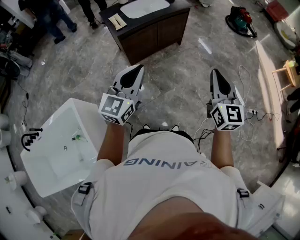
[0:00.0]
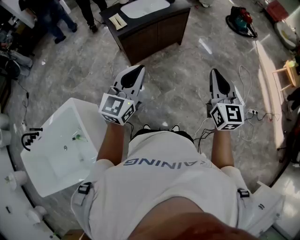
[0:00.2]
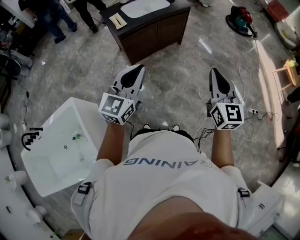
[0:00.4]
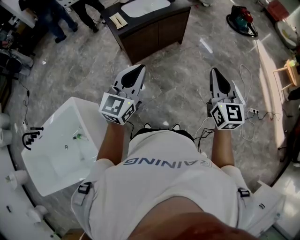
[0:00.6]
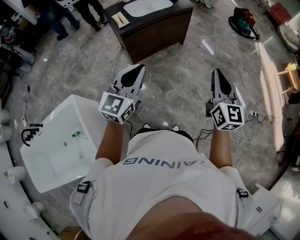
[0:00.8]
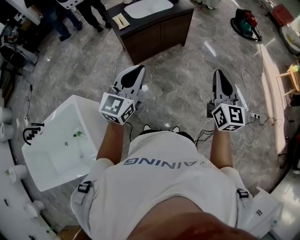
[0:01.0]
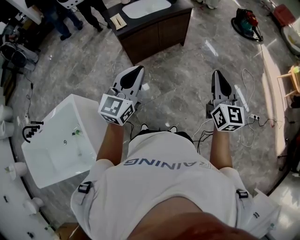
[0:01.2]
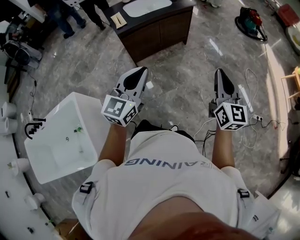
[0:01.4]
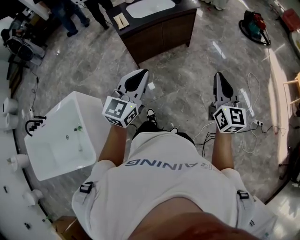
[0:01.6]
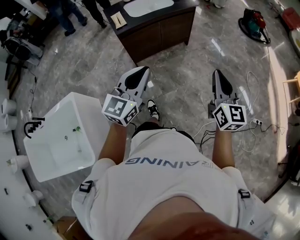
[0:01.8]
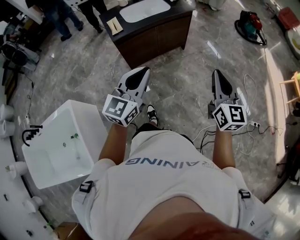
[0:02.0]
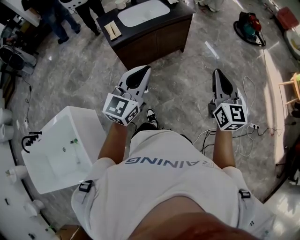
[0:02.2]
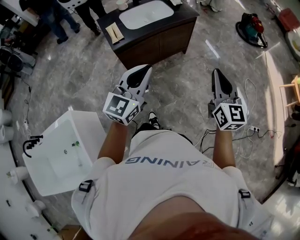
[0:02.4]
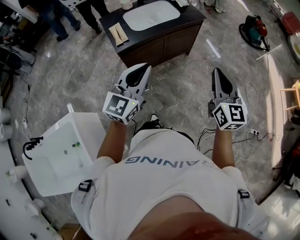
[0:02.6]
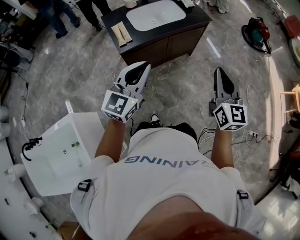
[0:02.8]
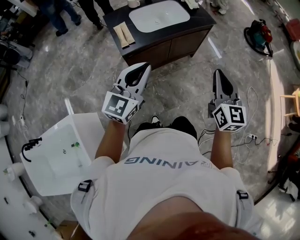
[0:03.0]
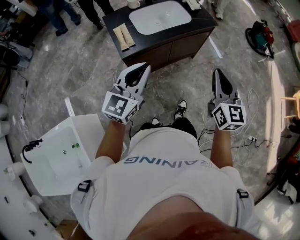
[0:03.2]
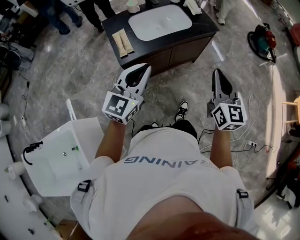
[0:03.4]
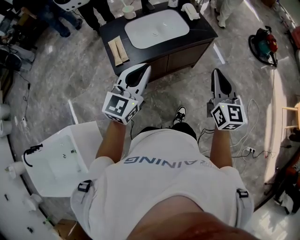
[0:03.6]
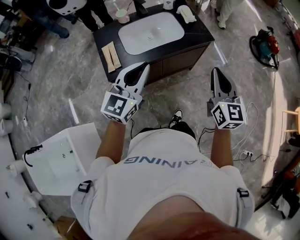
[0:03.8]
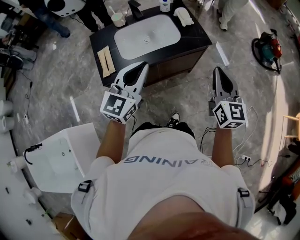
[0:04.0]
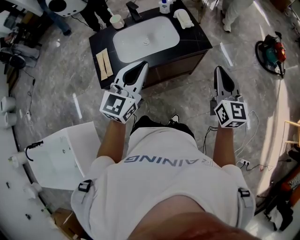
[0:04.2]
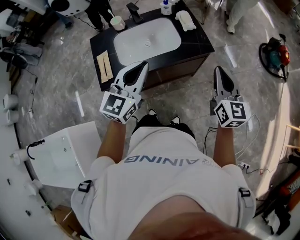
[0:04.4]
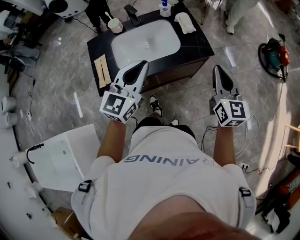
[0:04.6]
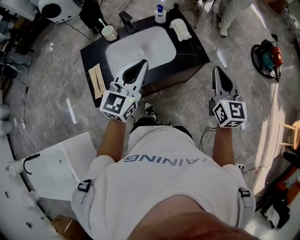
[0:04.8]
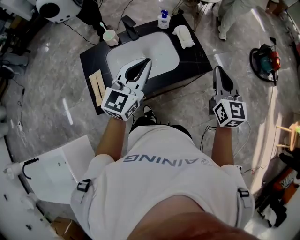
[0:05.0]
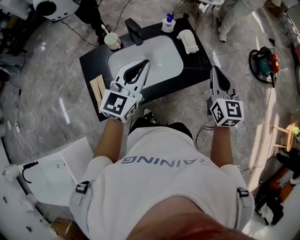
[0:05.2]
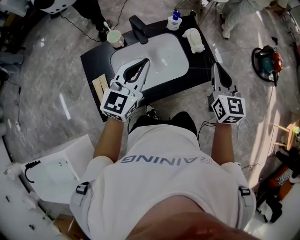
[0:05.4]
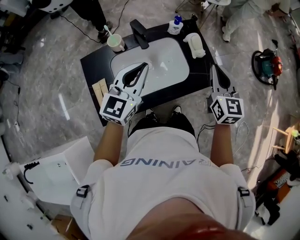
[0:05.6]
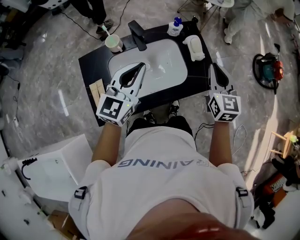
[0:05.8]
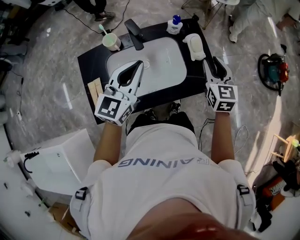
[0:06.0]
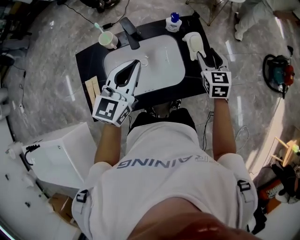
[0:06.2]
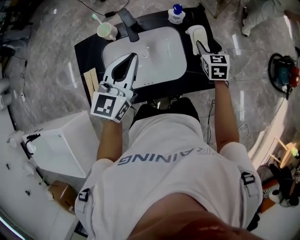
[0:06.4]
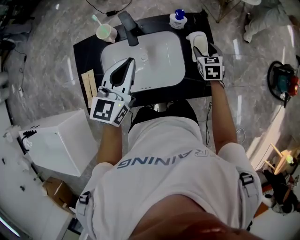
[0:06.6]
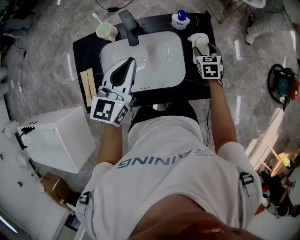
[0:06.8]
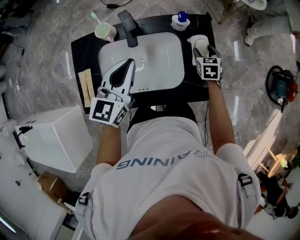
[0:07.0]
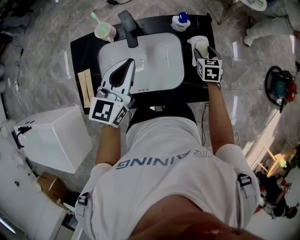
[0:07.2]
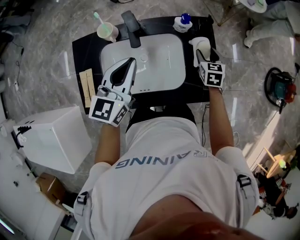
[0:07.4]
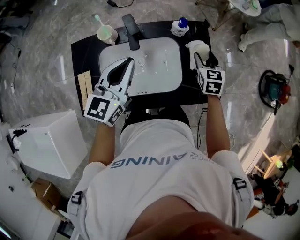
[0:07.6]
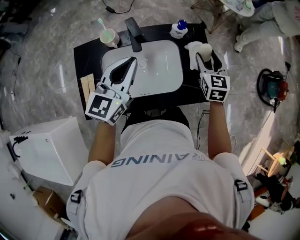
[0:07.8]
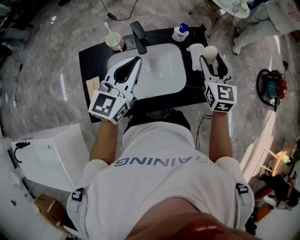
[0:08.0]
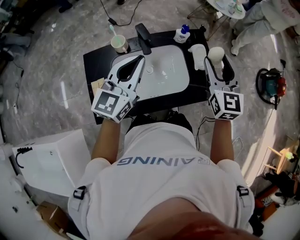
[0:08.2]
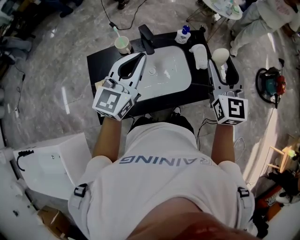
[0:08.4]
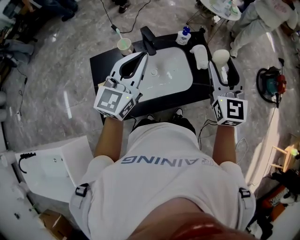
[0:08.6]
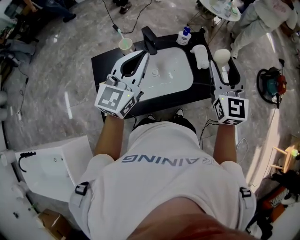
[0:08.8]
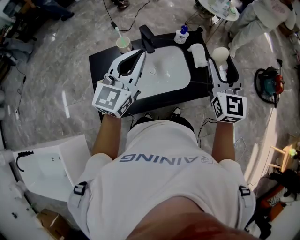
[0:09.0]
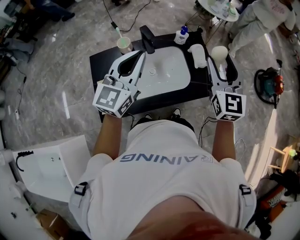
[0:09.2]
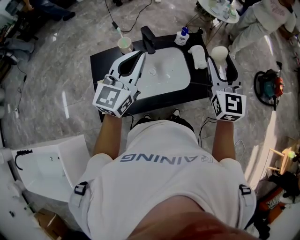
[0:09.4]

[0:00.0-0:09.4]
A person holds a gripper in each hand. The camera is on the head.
0.0 to 1.6 s: The two grippers go some 10 cm to the right.
1.6 to 3.2 s: Both grippers travel together forward and to the left, about 35 cm.
3.2 to 4.8 s: The two grippers go about 40 cm forward.
4.8 to 6.2 s: The right gripper shifts roughly 30 cm forward and downward, rotates approximately 30 degrees, and opens its fingers. Meanwhile the left gripper travels forward and to the left by roughly 20 cm.
6.2 to 7.8 s: The right gripper reaches some 15 cm downward, then returns.
7.8 to 9.4 s: The right gripper goes roughly 25 cm upward and backward, and swivels about 20 degrees. The left gripper travels upward and backward by approximately 15 cm.

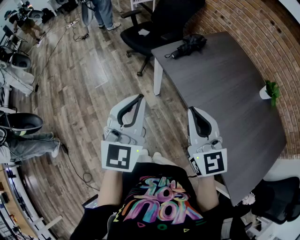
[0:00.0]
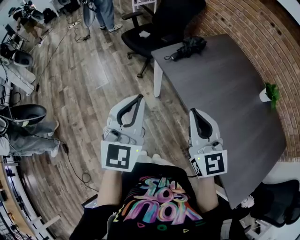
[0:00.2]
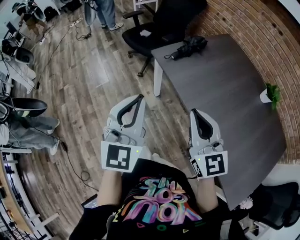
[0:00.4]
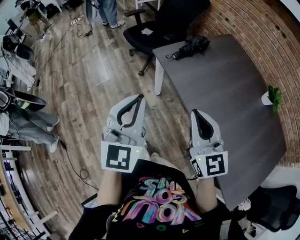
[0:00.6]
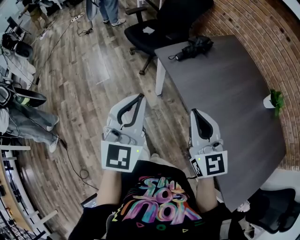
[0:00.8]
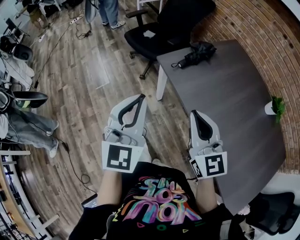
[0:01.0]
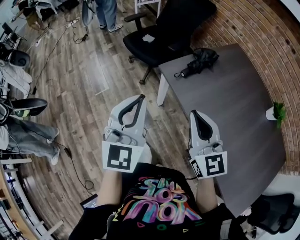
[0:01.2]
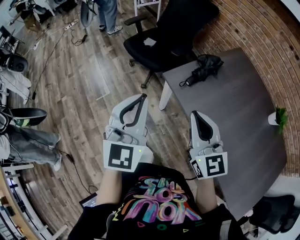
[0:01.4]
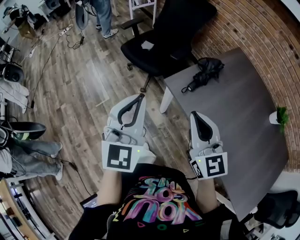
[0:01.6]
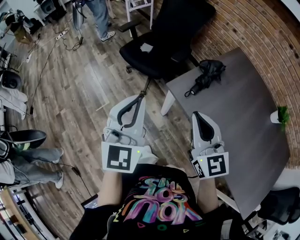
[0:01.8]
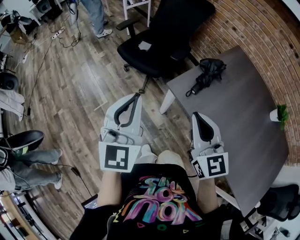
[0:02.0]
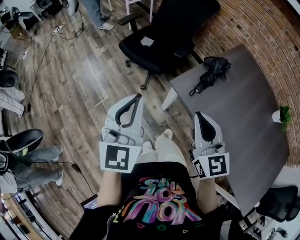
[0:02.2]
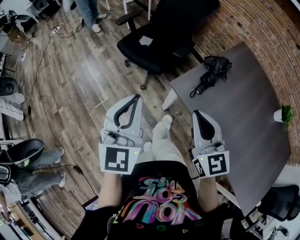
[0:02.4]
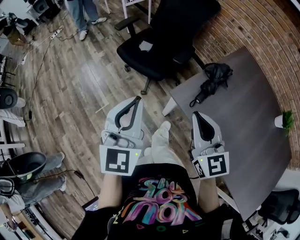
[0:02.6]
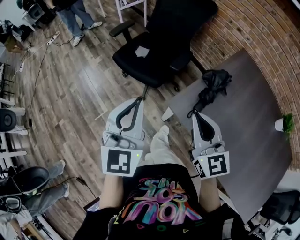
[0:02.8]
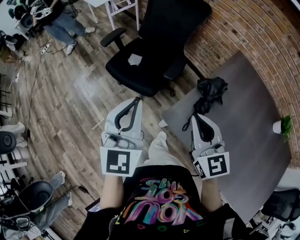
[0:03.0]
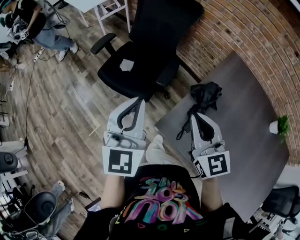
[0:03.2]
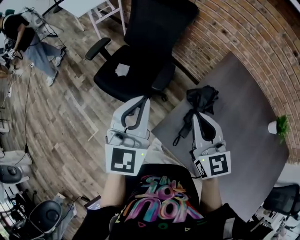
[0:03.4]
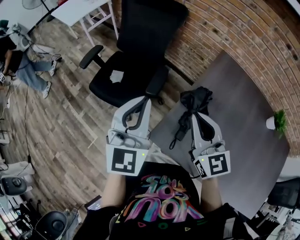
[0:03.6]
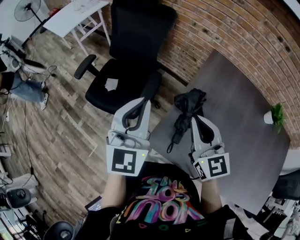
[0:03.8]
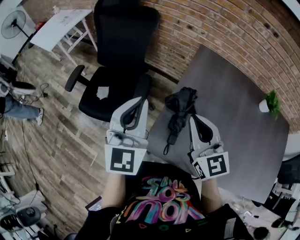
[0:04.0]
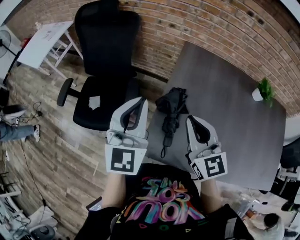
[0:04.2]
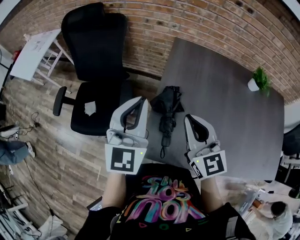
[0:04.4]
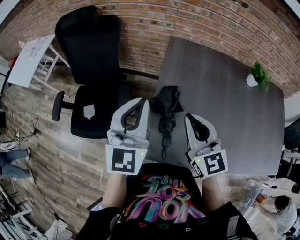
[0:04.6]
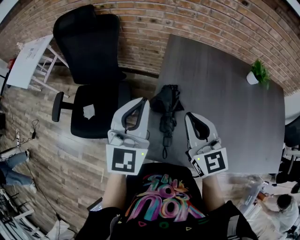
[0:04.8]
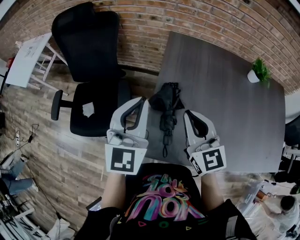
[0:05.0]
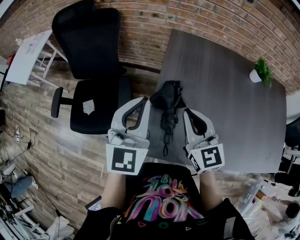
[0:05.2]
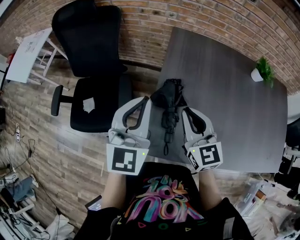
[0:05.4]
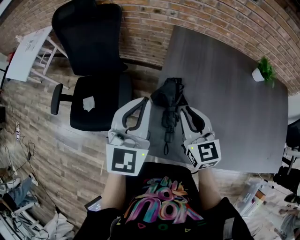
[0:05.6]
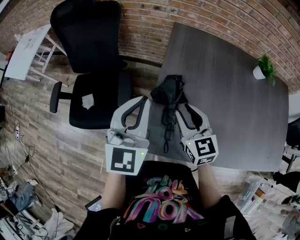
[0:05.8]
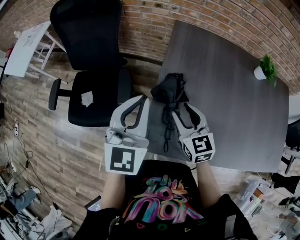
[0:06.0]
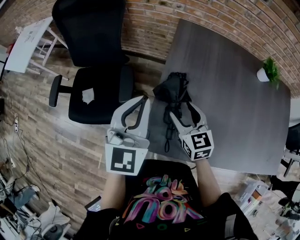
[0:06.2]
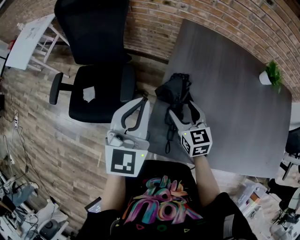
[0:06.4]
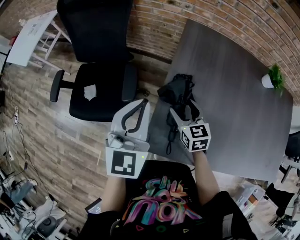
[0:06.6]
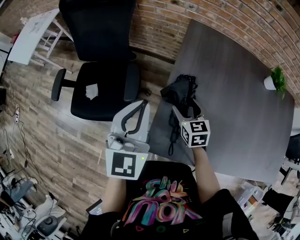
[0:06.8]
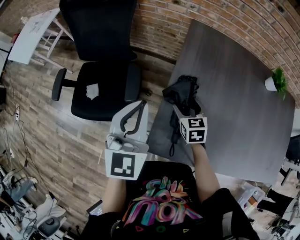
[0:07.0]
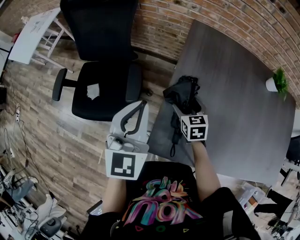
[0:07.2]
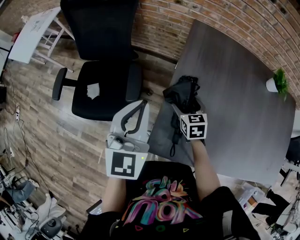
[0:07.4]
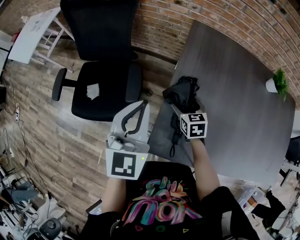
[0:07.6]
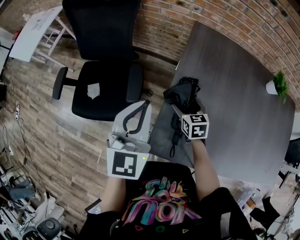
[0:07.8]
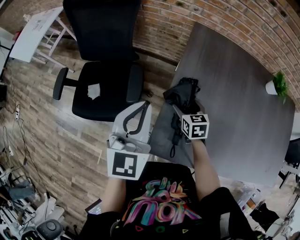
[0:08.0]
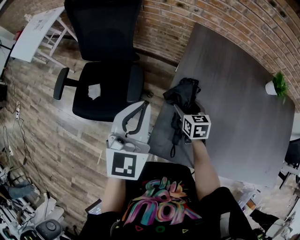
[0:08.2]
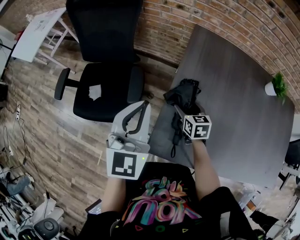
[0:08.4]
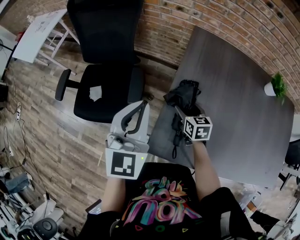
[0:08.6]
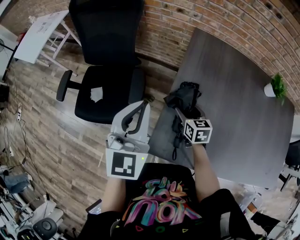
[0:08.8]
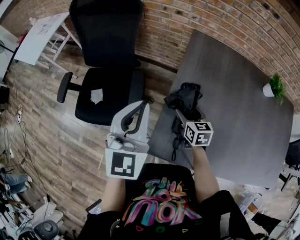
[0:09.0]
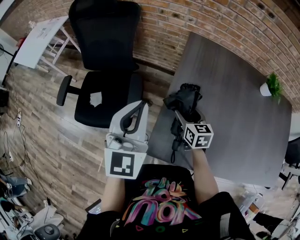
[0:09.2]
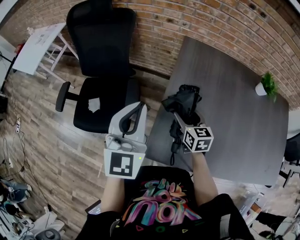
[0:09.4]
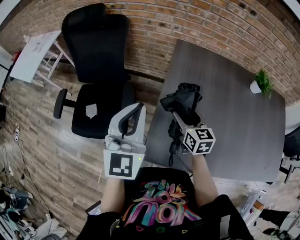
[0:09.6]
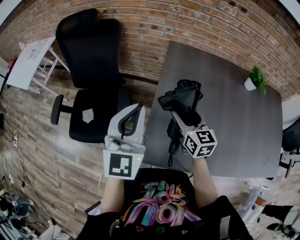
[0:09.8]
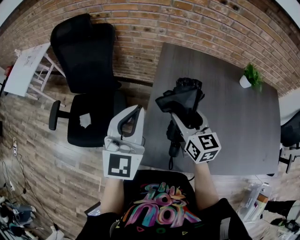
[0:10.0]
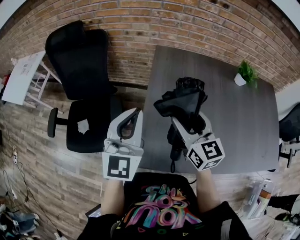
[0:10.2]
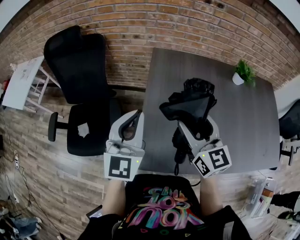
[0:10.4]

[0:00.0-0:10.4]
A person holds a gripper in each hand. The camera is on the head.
0.0 to 1.4 s: The two grippers go approximately 20 cm forward.
1.4 to 3.0 s: The grippers both shift forward by some 25 cm.
3.0 to 4.4 s: The left gripper shifts by about 25 cm, and changes its angle by about 30 degrees. The right gripper moves approximately 15 cm, and turns by roughly 30 degrees.
4.4 to 6.0 s: The left gripper heads downward, covering approximately 5 cm. Meanwhile the right gripper goes approximately 15 cm downward, and opens.
6.0 to 7.4 s: The right gripper goes about 15 cm downward and forward, changes its angle by approximately 20 degrees, and opens. The left gripper shifts by roughly 5 cm.
7.4 to 9.0 s: There are only small adjustments of the grippers.
9.0 to 10.4 s: The right gripper moves upward, approximately 25 cm, and changes its angle by about 30 degrees. The left gripper moves to the right, some 10 cm.

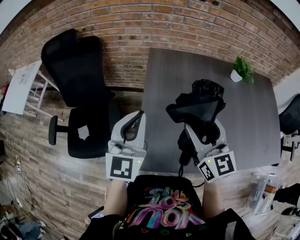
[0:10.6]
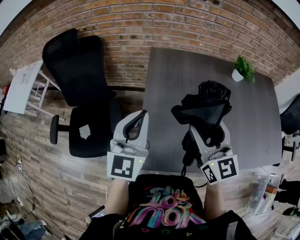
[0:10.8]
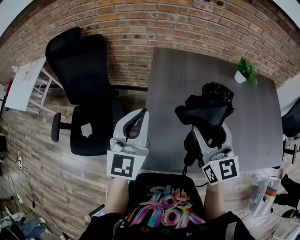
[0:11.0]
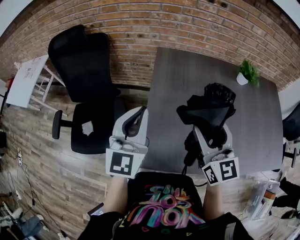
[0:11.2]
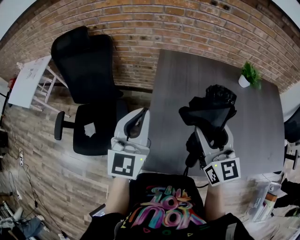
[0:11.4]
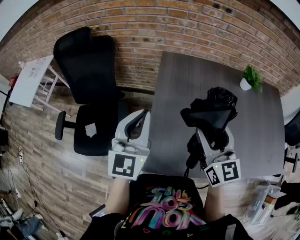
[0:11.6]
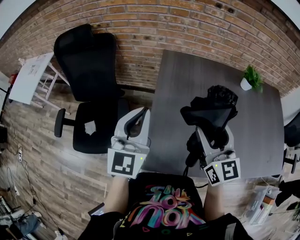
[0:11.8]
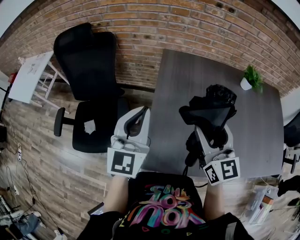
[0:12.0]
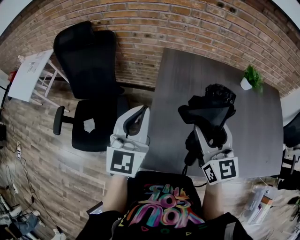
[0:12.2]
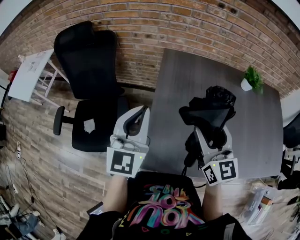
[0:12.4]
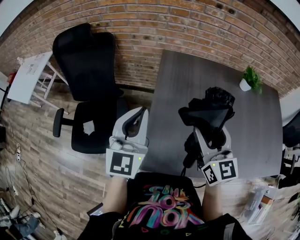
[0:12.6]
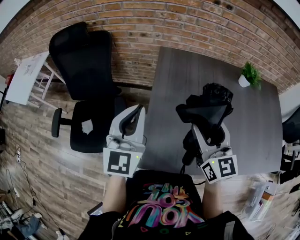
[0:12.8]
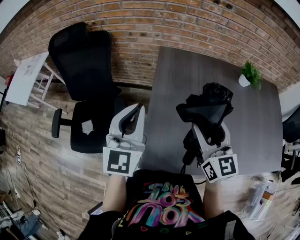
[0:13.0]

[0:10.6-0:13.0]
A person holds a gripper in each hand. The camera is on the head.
10.6 to 13.0 s: The grippers move only a little.

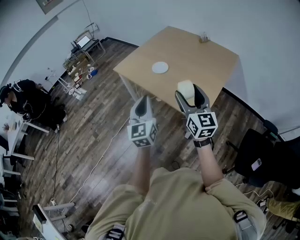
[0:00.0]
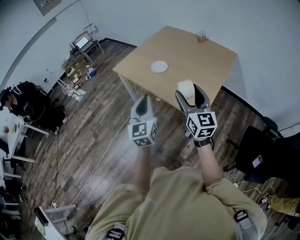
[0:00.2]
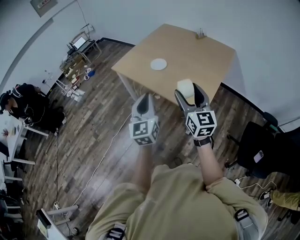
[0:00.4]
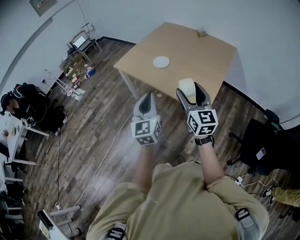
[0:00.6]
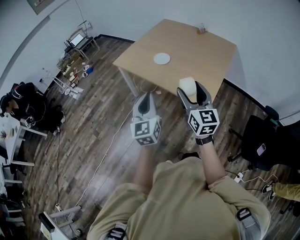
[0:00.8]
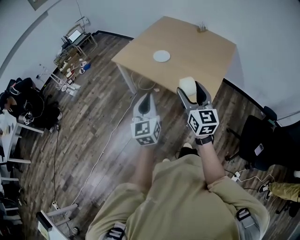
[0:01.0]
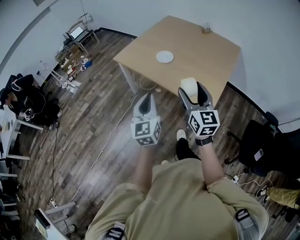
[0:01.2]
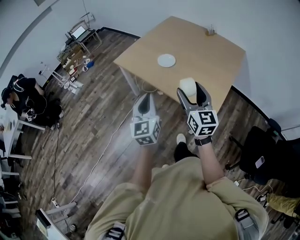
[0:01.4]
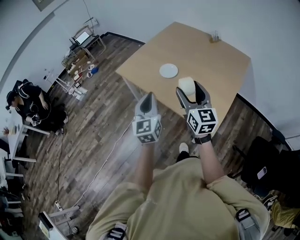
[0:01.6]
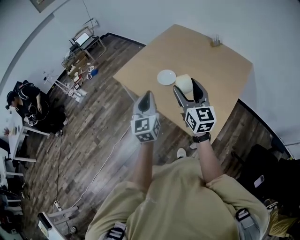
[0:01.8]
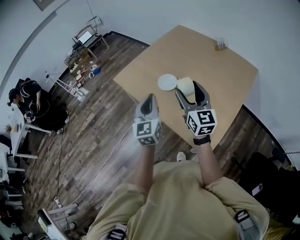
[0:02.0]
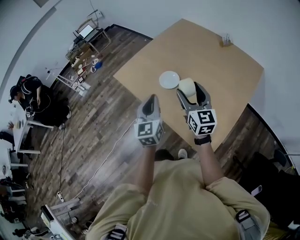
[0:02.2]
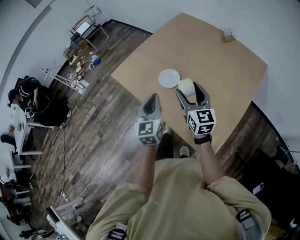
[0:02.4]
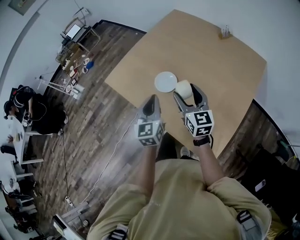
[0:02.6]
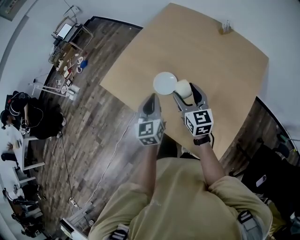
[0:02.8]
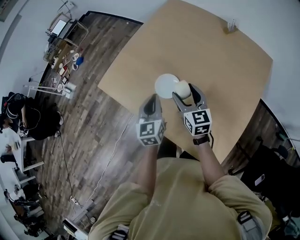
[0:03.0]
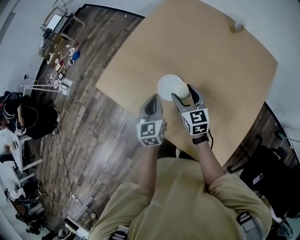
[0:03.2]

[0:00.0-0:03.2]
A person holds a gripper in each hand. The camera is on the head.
0.0 to 1.6 s: Both grippers travel together forward, roughly 15 cm.
1.6 to 3.2 s: Both grippers are carried forward, roughly 40 cm. Both grippers move downward, some 20 cm. The right gripper turns by some 30 degrees. Meanwhile the left gripper turns by about 20 degrees.
